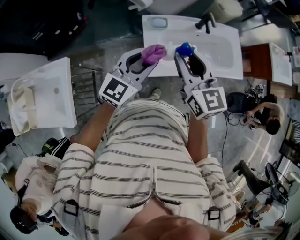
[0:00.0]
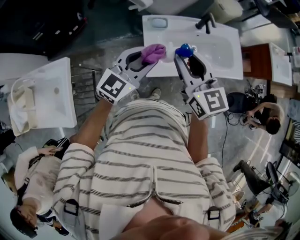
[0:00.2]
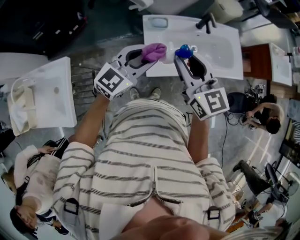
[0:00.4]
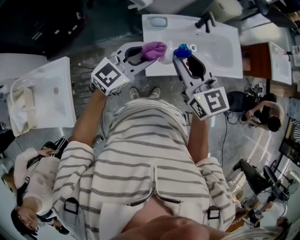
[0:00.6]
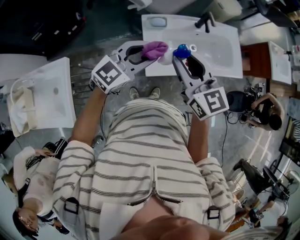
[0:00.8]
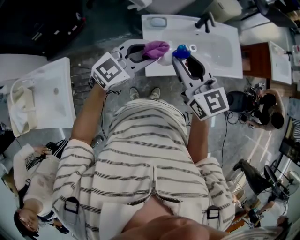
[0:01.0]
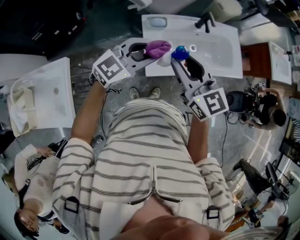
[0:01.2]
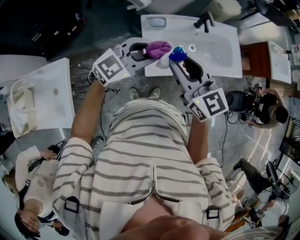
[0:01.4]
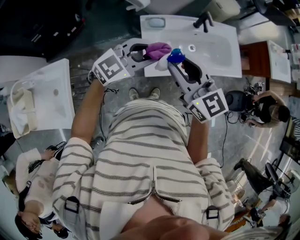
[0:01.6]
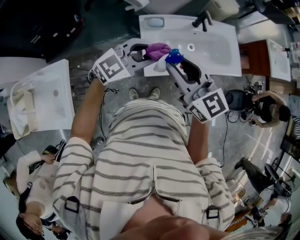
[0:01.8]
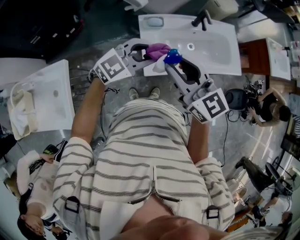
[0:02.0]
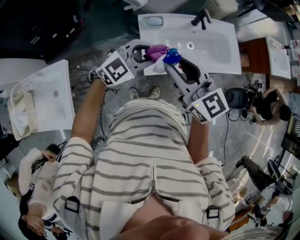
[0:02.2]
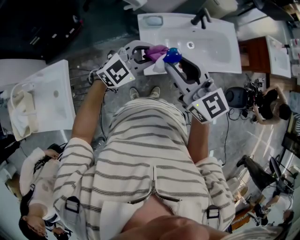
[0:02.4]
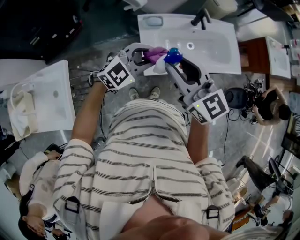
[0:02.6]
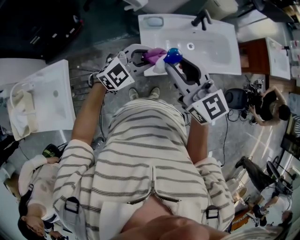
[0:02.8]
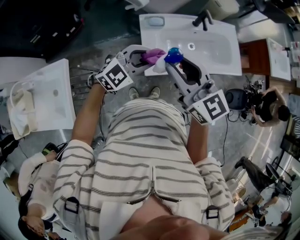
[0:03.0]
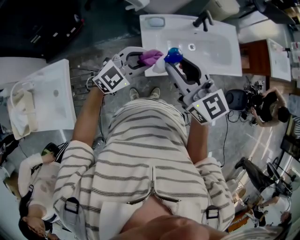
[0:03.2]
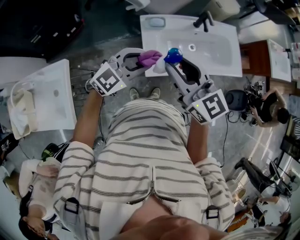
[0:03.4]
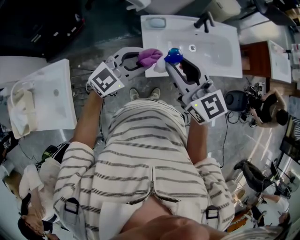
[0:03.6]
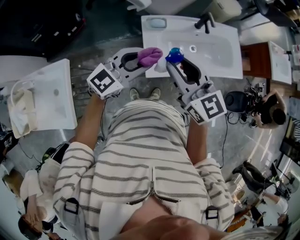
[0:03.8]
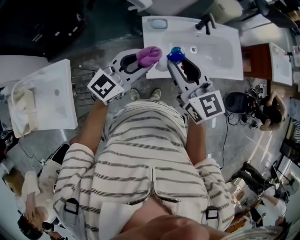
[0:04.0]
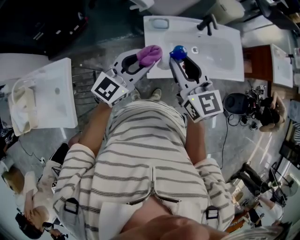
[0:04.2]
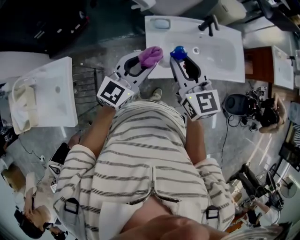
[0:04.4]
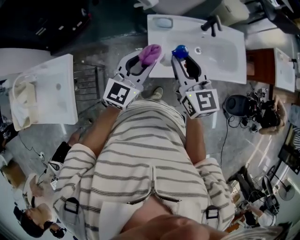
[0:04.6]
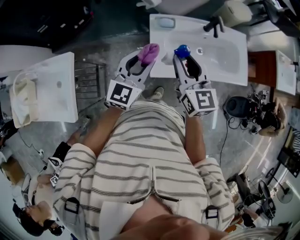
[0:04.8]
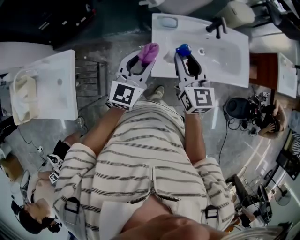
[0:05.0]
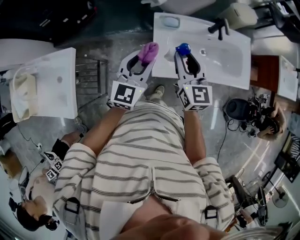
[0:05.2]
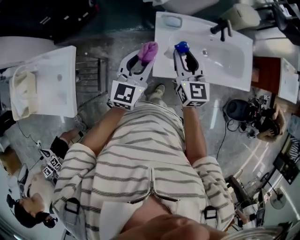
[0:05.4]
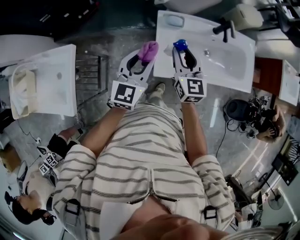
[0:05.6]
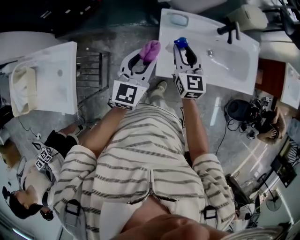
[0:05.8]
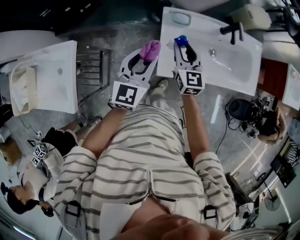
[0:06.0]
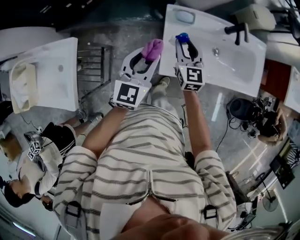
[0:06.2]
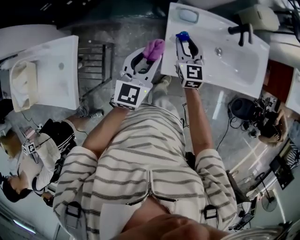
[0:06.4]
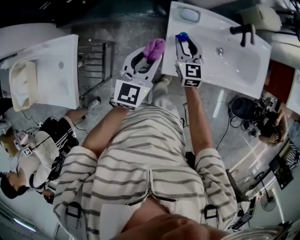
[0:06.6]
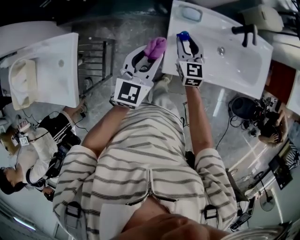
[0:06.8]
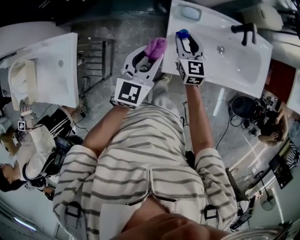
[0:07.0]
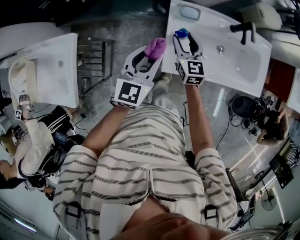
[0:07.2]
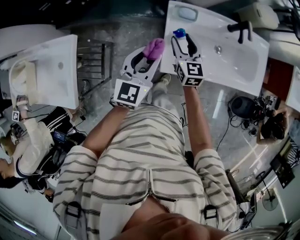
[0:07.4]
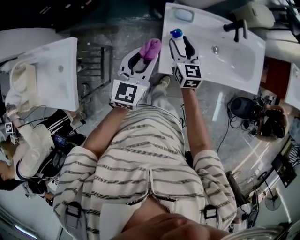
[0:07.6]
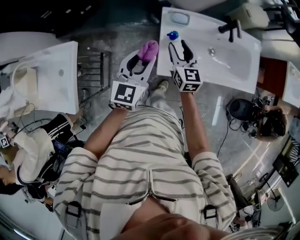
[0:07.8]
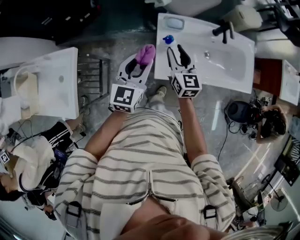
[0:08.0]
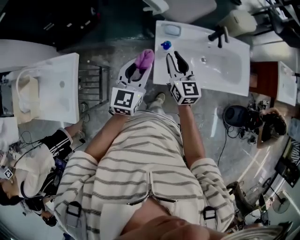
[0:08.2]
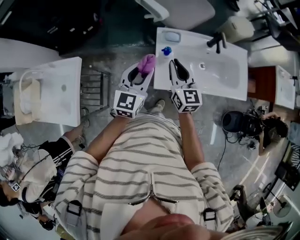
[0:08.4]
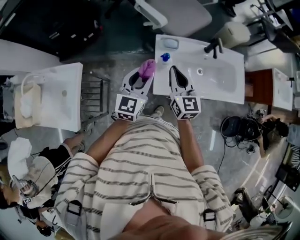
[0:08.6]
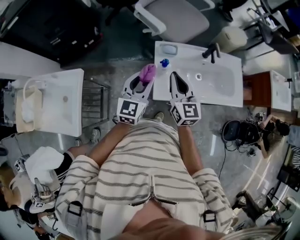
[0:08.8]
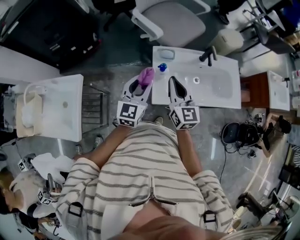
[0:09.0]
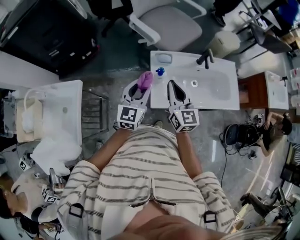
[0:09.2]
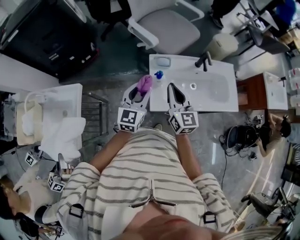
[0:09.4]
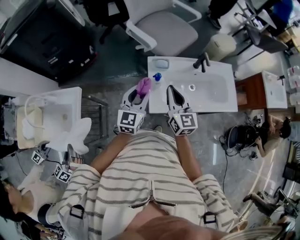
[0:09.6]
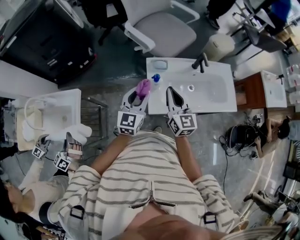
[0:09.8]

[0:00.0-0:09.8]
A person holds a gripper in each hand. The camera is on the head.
0:00.0 to 0:01.4: The left gripper turns by some 20 degrees.
0:01.4 to 0:02.8: The left gripper shifts roughly 5 cm downward.
0:02.8 to 0:04.2: The left gripper shifts roughly 5 cm upward, and swivels about 30 degrees. Meanwhile the right gripper ends up about 5 cm from where it was.
0:04.2 to 0:05.6: The left gripper moves downward, approximately 5 cm, and turns by about 30 degrees, while the right gripper is displaced downward and forward by roughly 15 cm.
0:05.6 to 0:07.0: The right gripper moves downward and forward, some 15 cm.
0:07.0 to 0:08.4: The right gripper moves upward and backward, some 15 cm, and closes its fingers, while the left gripper travels upward by roughly 5 cm.
0:08.4 to 0:09.8: The right gripper ends up roughly 5 cm from where it was.

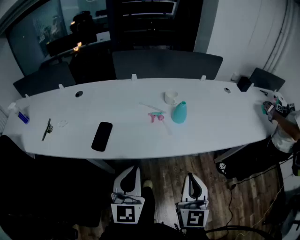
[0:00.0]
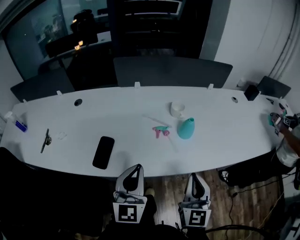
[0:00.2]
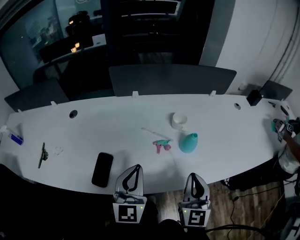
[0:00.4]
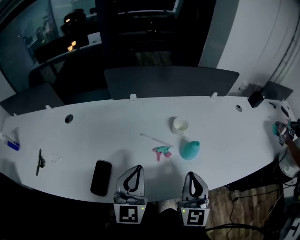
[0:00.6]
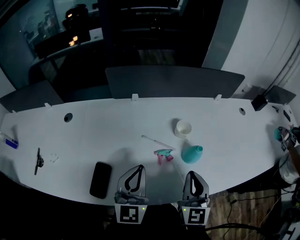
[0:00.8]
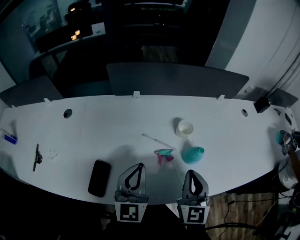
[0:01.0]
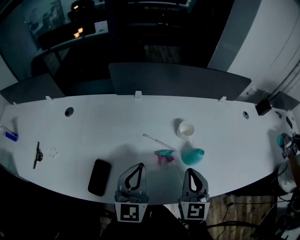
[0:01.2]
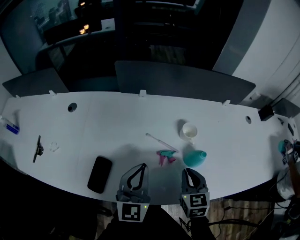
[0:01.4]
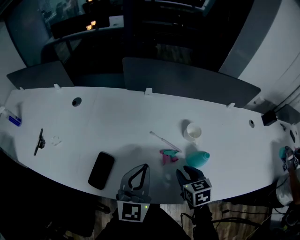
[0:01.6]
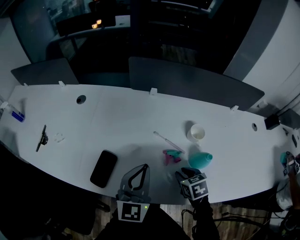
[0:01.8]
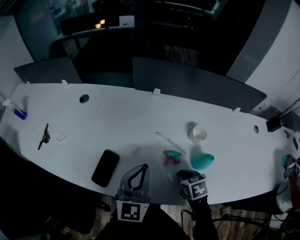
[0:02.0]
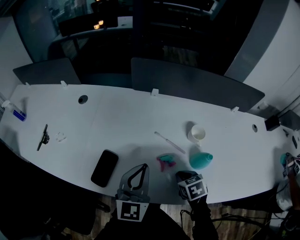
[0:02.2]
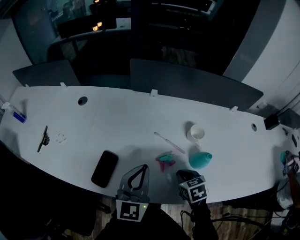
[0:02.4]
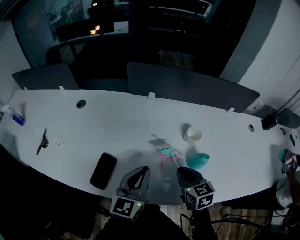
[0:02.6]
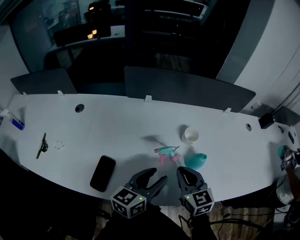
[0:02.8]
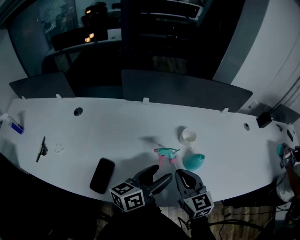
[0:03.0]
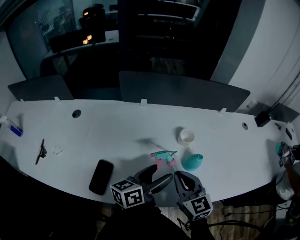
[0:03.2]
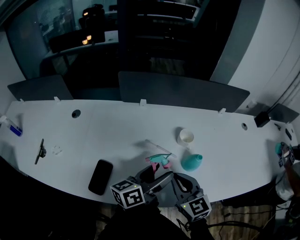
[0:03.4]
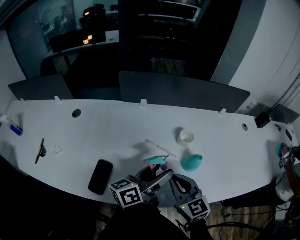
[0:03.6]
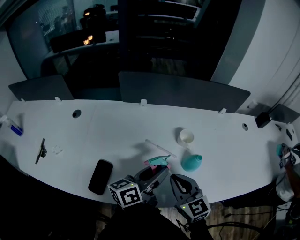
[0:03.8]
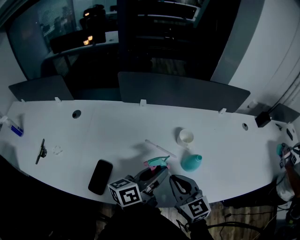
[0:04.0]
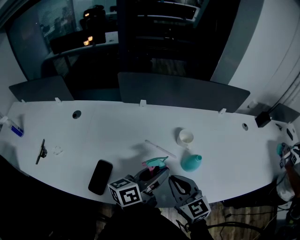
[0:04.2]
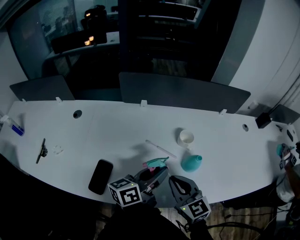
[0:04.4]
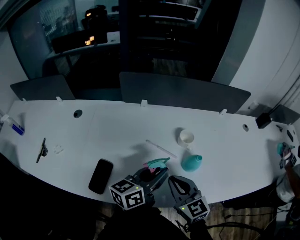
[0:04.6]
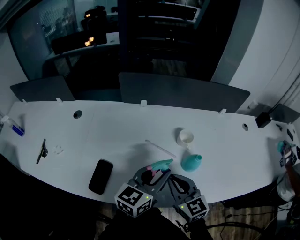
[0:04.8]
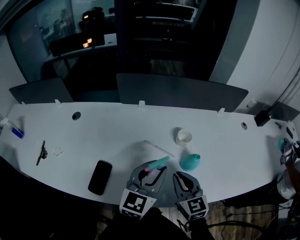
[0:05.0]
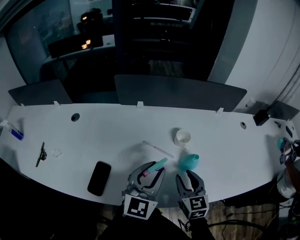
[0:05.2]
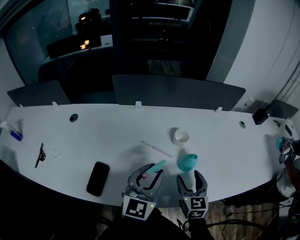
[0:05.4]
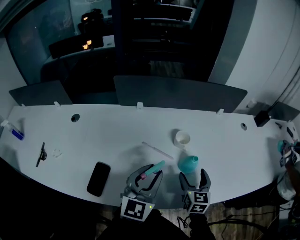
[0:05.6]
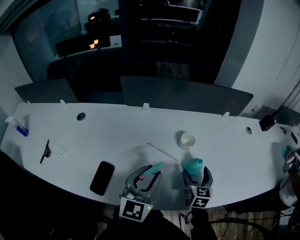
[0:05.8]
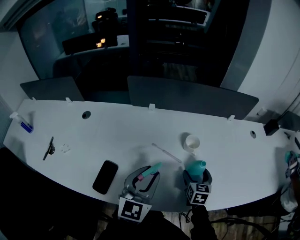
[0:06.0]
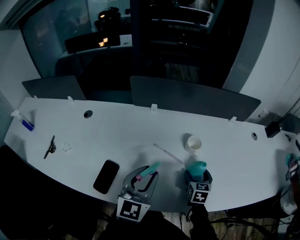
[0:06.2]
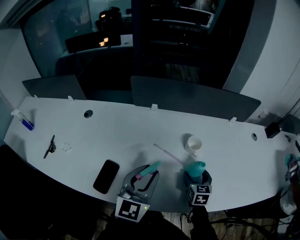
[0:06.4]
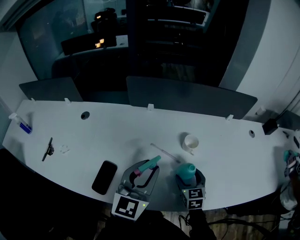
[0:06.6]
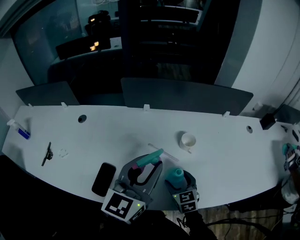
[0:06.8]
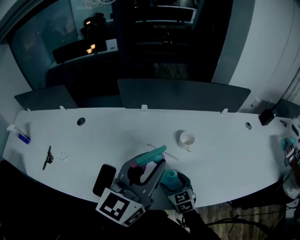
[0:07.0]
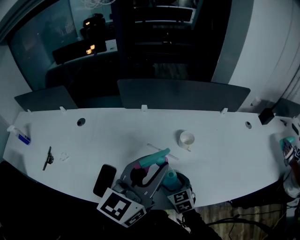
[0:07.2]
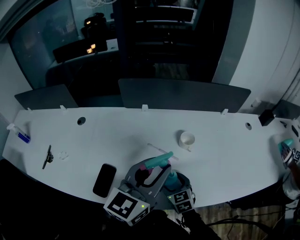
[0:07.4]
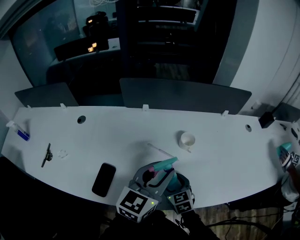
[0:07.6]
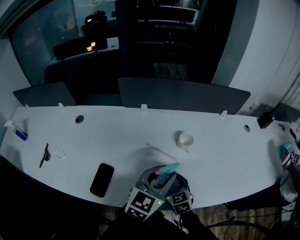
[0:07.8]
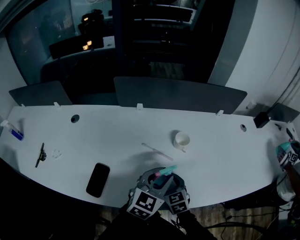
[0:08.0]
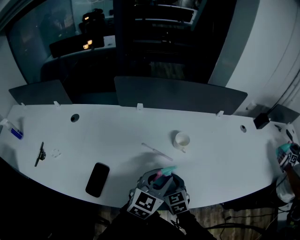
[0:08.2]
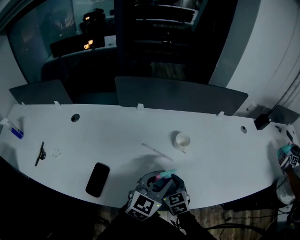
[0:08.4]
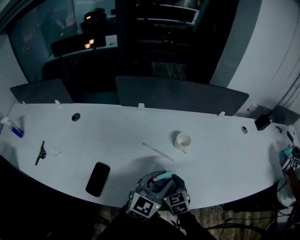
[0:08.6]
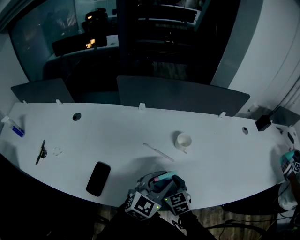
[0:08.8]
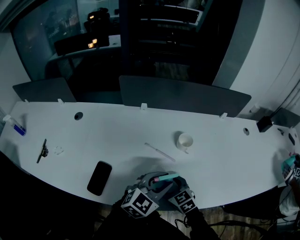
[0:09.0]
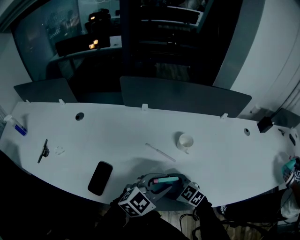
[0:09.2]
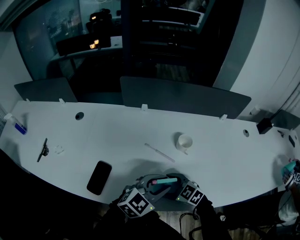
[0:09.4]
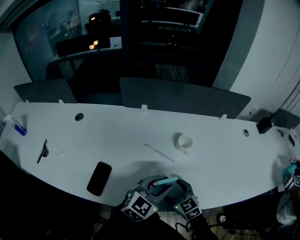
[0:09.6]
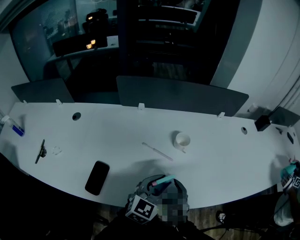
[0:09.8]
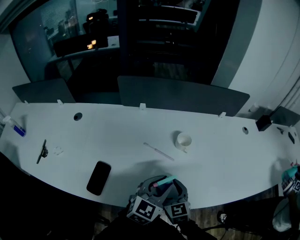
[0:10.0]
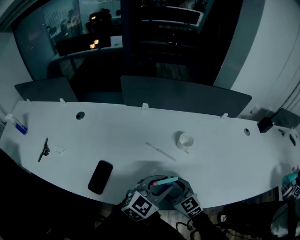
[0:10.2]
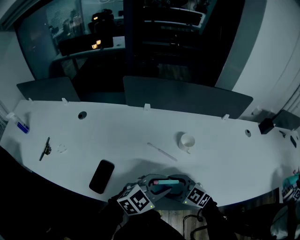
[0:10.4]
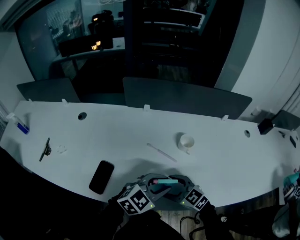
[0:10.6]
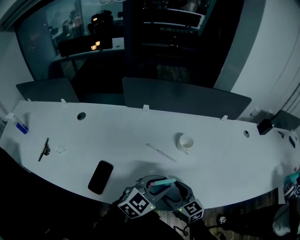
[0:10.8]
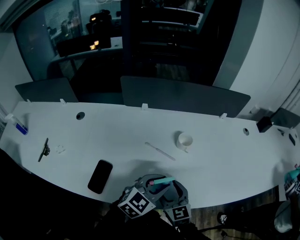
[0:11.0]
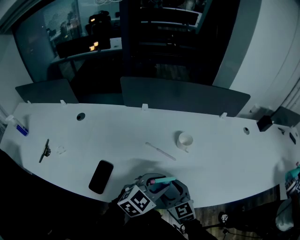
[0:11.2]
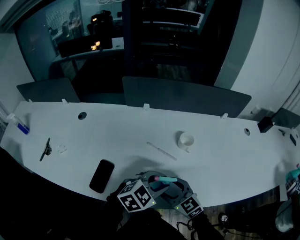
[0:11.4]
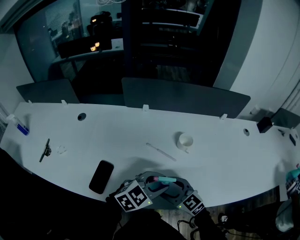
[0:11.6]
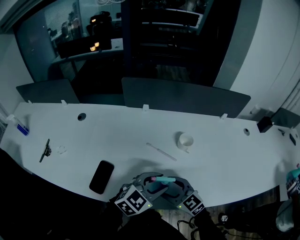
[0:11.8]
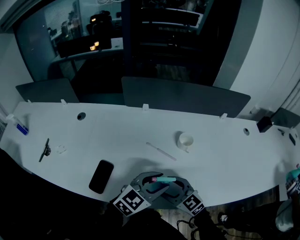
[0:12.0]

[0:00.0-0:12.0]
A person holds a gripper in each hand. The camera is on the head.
0:00.0 to 0:01.6: The right gripper shifts roughly 35 cm forward and downward, and angles its fingers downward, by some 40 degrees. The left gripper heads forward, covering approximately 25 cm.
0:01.6 to 0:03.0: The right gripper travels upward by approximately 10 cm, and swivels roughly 30 degrees. Meanwhile the left gripper shifts roughly 5 cm to the right, twists roughly 50 degrees counterclockwise, seen from behind, and opens its fingers.
0:03.0 to 0:04.4: The left gripper closes its fingers.
0:04.4 to 0:06.0: The left gripper rotates around the line of its fingers by some 60 degrees, clockwise from behind. Meanwhile the right gripper shifts about 20 cm downward, to the right and forward, turns by some 40 degrees, and opens.
0:06.0 to 0:07.6: The left gripper is displaced to the right by approximately 5 cm, and goes upward and returns, about 10 cm each way, while the right gripper travels to the left and backward by roughly 15 cm, and changes its angle by some 30 degrees.
0:07.6 to 0:09.0: The left gripper travels downward by roughly 10 cm, and turns by approximately 30 degrees.
0:09.0 to 0:10.4: The right gripper turns by some 30 degrees.

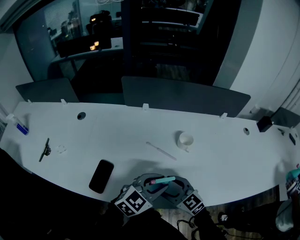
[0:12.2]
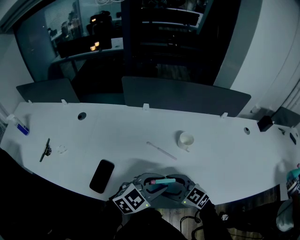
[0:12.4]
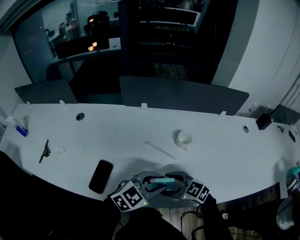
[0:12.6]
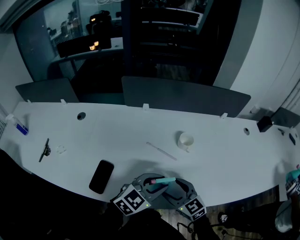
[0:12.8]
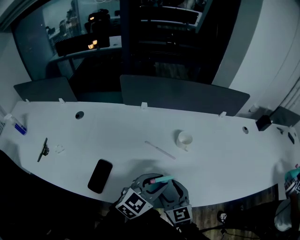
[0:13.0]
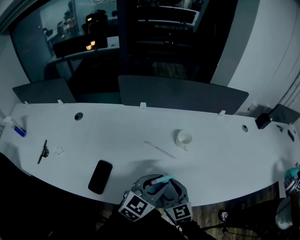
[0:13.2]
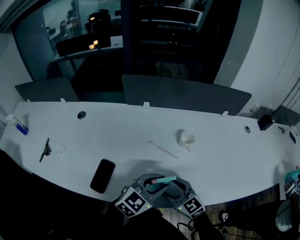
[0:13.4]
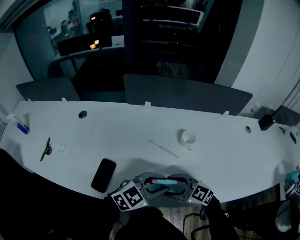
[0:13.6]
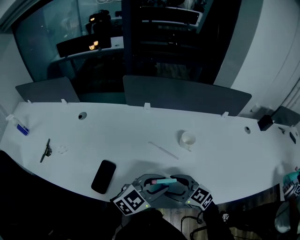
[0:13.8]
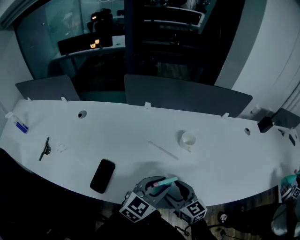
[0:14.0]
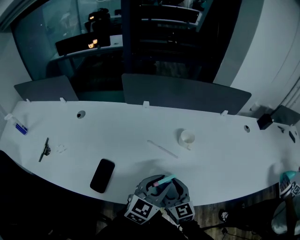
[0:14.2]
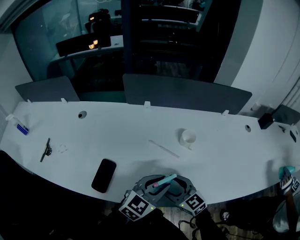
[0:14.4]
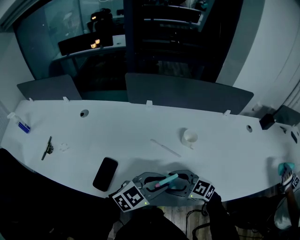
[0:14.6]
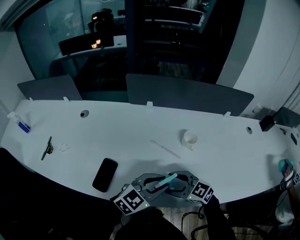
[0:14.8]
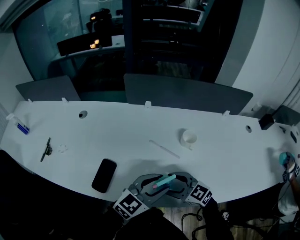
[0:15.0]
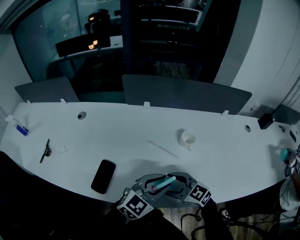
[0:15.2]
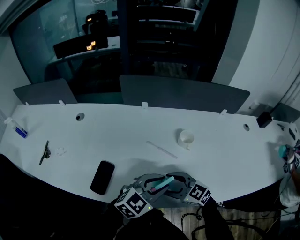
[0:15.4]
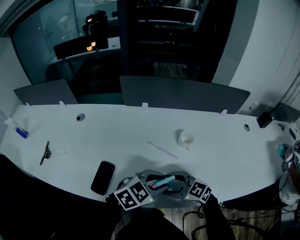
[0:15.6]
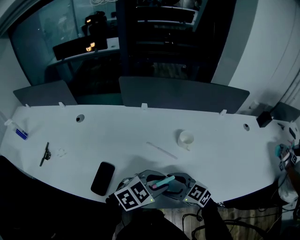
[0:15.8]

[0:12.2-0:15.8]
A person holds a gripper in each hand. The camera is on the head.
0:12.2 to 0:14.0: The right gripper turns by some 20 degrees.
0:14.0 to 0:15.8: The left gripper turns by some 30 degrees. Meanwhile the right gripper changes its angle by some 30 degrees.
